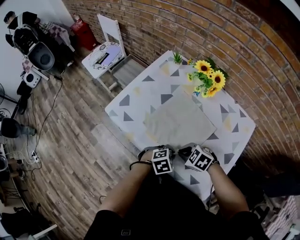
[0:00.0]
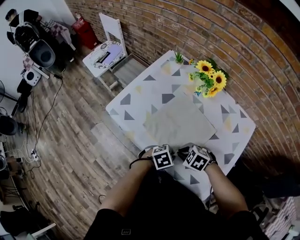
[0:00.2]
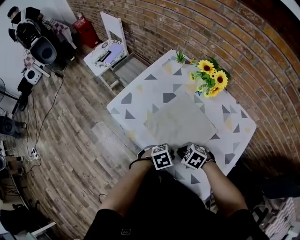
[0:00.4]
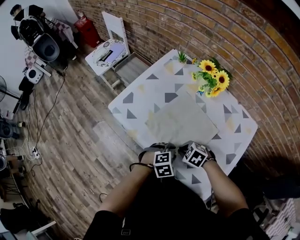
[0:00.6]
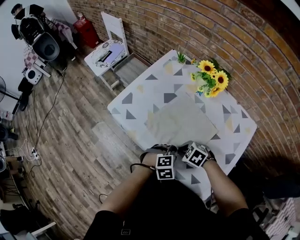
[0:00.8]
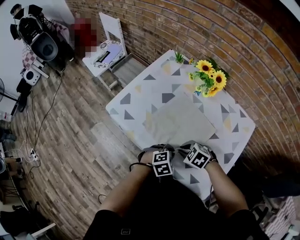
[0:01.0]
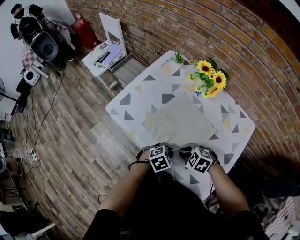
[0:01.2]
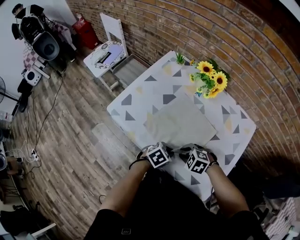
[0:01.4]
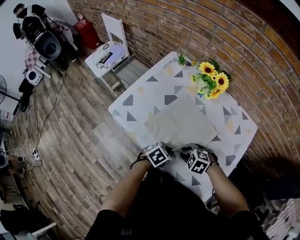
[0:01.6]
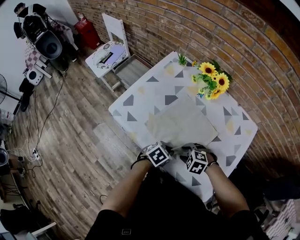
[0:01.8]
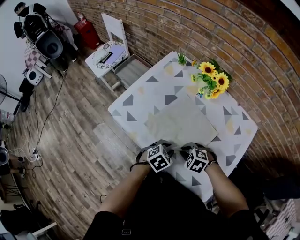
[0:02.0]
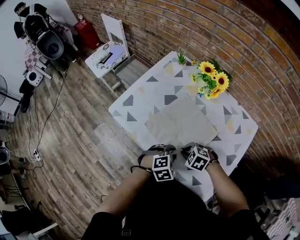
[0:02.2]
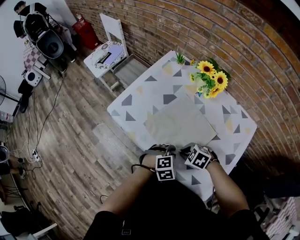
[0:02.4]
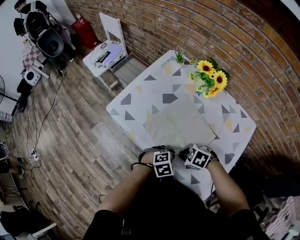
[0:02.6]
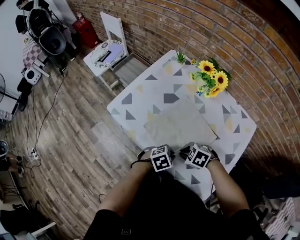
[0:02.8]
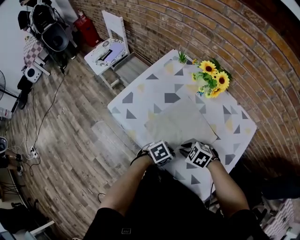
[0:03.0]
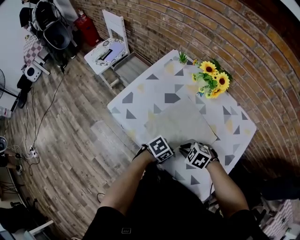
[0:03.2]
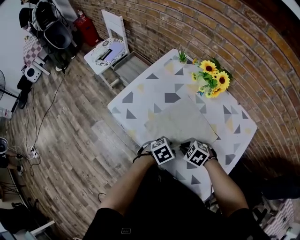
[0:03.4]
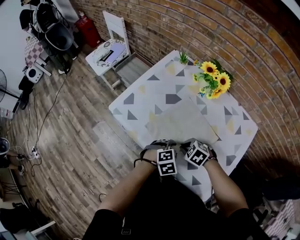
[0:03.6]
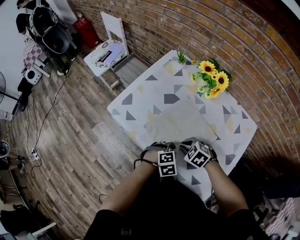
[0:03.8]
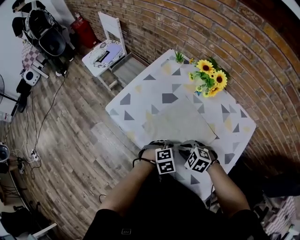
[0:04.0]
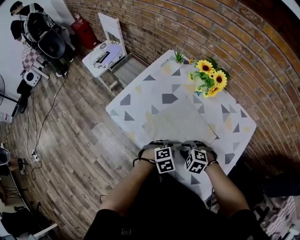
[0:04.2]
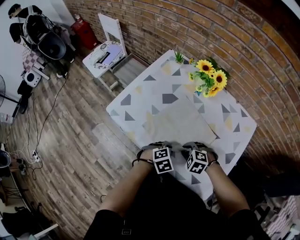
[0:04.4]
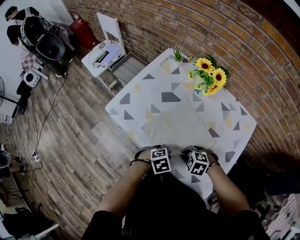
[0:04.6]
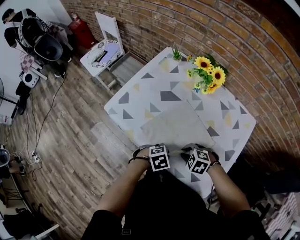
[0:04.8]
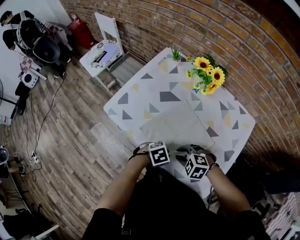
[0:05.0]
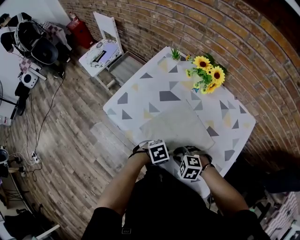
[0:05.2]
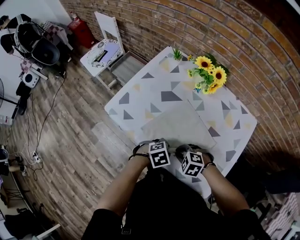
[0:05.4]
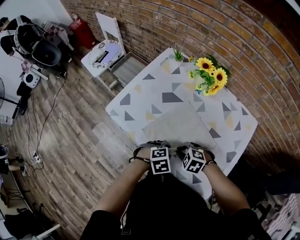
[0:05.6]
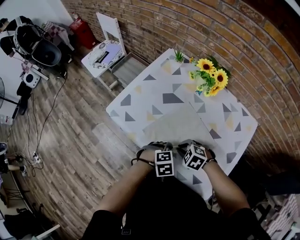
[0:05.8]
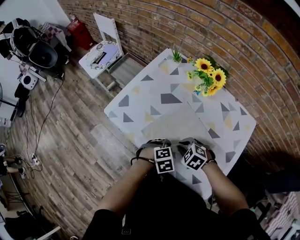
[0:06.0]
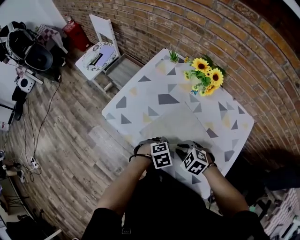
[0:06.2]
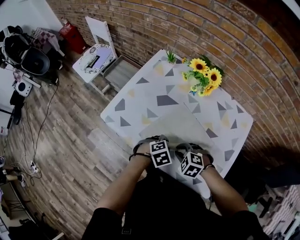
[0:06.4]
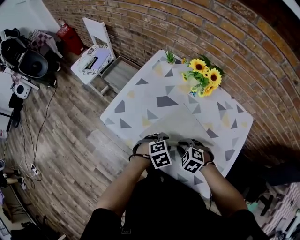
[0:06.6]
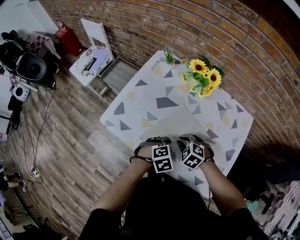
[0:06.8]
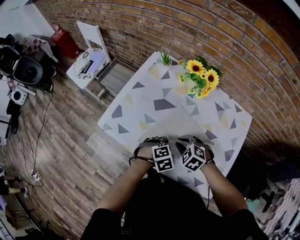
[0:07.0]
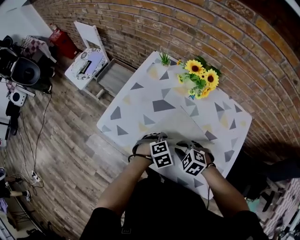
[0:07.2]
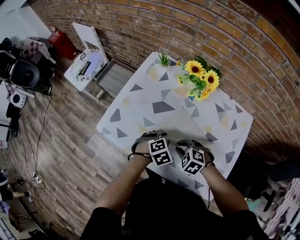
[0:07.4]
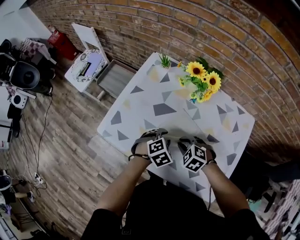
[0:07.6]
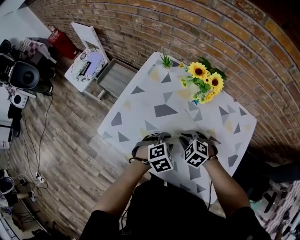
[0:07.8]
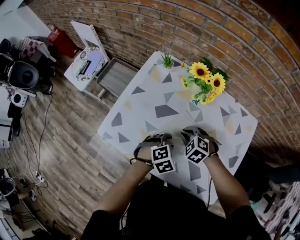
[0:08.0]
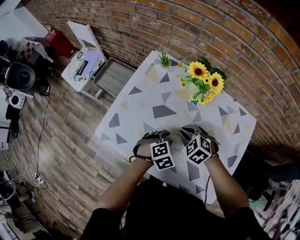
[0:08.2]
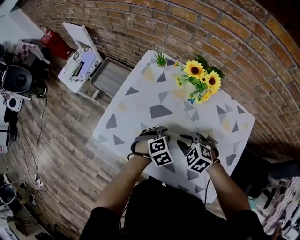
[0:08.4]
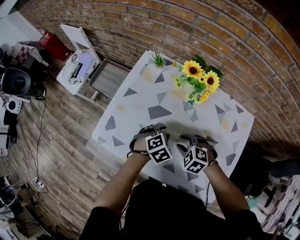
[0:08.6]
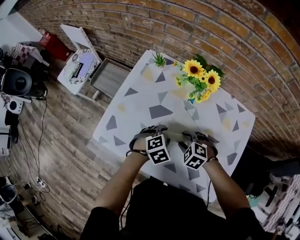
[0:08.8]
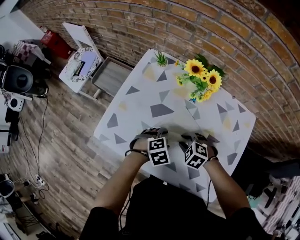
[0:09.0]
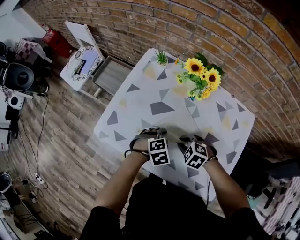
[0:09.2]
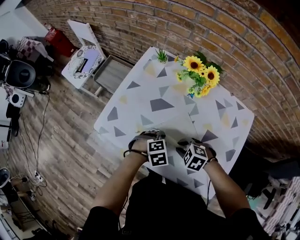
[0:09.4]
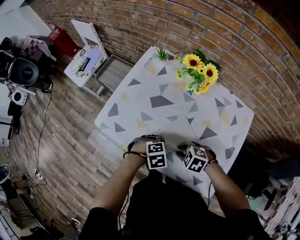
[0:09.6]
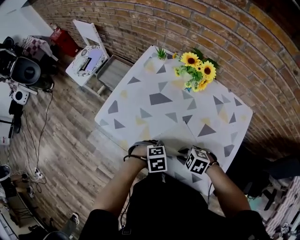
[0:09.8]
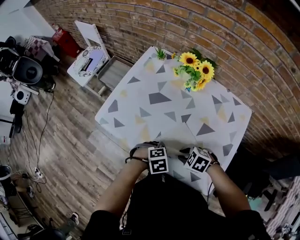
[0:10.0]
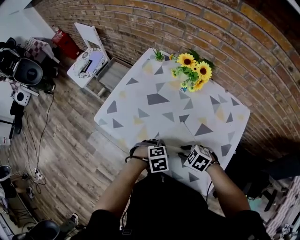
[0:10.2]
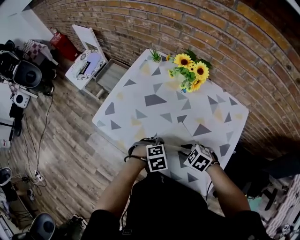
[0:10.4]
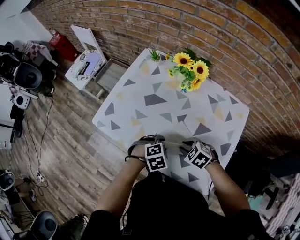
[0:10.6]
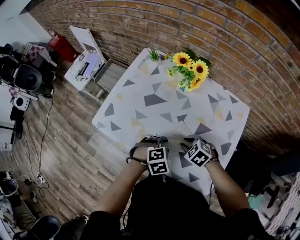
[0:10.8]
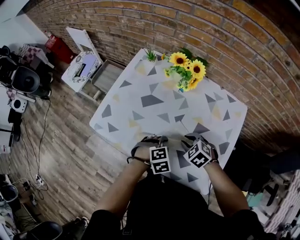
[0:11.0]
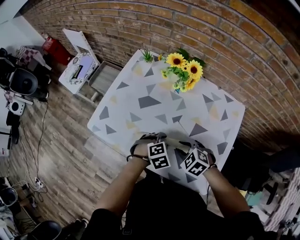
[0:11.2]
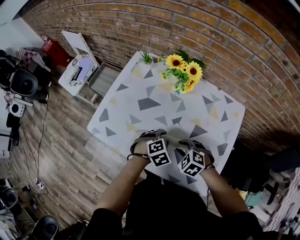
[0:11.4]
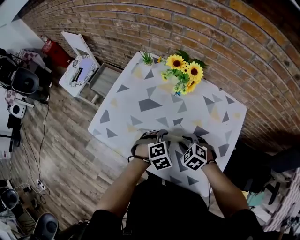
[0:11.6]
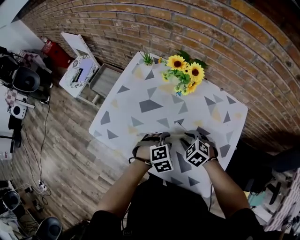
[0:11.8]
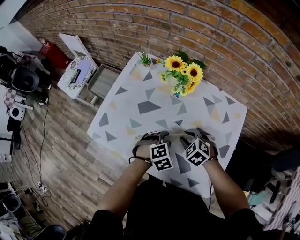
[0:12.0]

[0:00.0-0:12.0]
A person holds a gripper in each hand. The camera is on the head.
0:00.0 to 0:01.6: The left gripper swivels about 20 degrees, and opens, then closes once more.
0:03.0 to 0:04.4: The left gripper changes its angle by approximately 30 degrees, and opens, then closes once more.
0:04.4 to 0:06.0: The left gripper opens up.
0:06.0 to 0:07.6: The right gripper ends up approximately 5 cm from where it was; the left gripper moves about 15 cm.
0:09.0 to 0:10.4: The right gripper changes place by about 10 cm. The left gripper moves roughly 10 cm.
0:10.4 to 0:12.0: The left gripper moves approximately 10 cm. Meanwhile the right gripper moves about 10 cm.

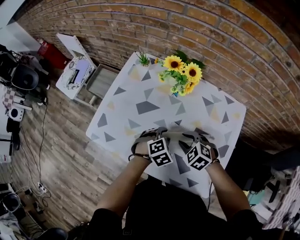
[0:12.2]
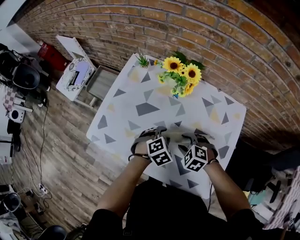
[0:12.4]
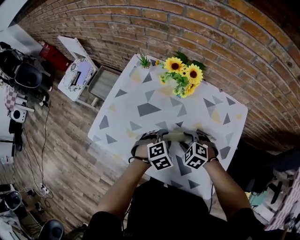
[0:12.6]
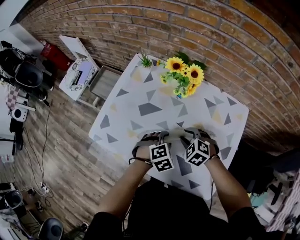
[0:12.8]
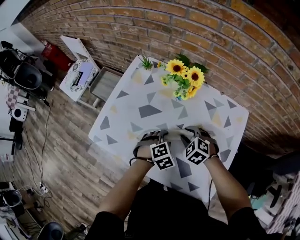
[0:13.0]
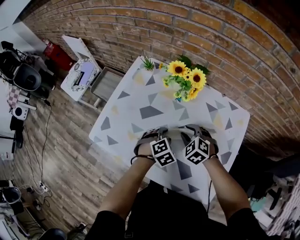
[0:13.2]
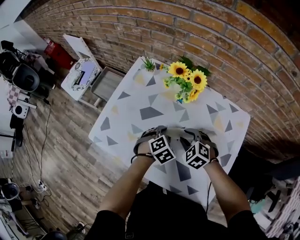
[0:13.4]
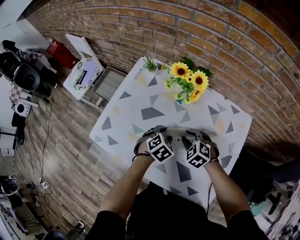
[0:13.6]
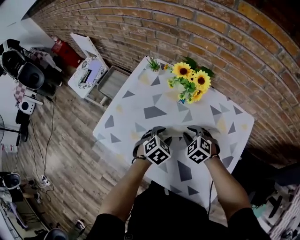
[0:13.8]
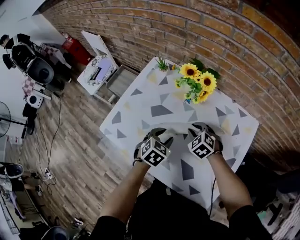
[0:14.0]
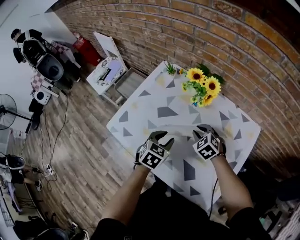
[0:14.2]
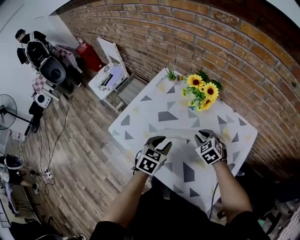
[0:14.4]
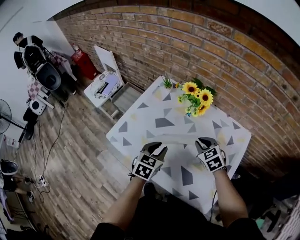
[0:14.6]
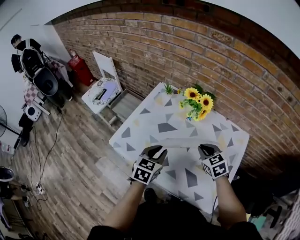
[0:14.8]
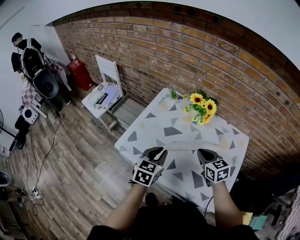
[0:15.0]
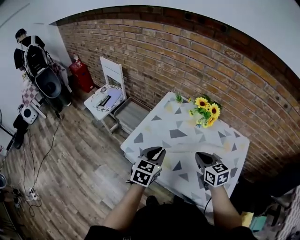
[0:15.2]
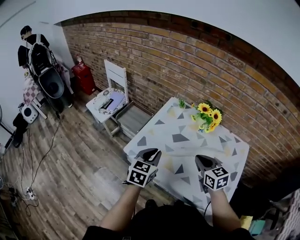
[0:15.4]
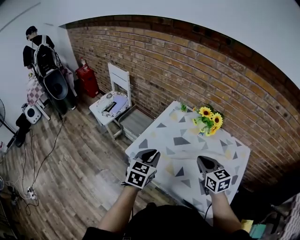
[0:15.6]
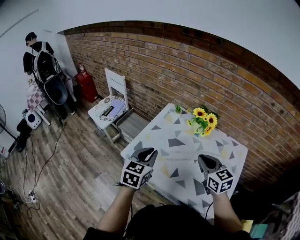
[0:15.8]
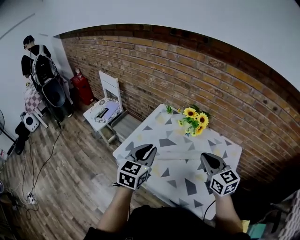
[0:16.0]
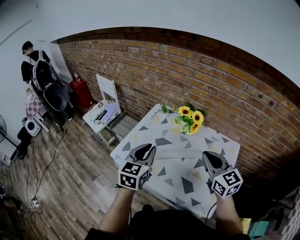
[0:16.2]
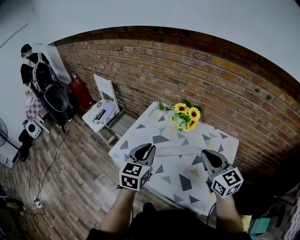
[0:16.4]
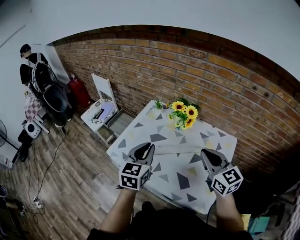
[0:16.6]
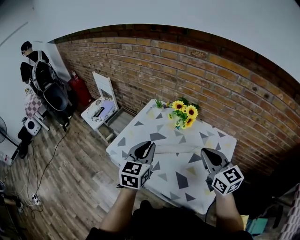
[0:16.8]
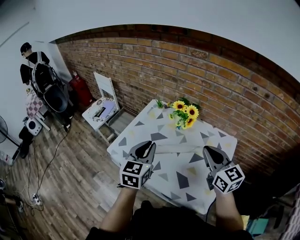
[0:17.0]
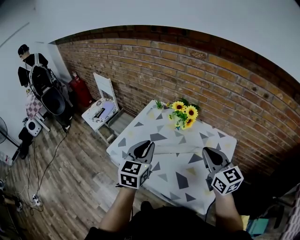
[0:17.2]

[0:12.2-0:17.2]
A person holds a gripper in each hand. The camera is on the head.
0:12.2 to 0:13.8: The right gripper shifts approximately 5 cm forward. Meanwhile the left gripper swivels roughly 20 degrees.
0:13.8 to 0:15.6: The left gripper shifts roughly 30 cm to the left and upward, tips its fingers upward by roughly 30 degrees, and closes, while the right gripper is displaced upward, to the left and backward by roughly 25 cm, tilts its fingers roughly 30 degrees upward, and closes its fingers.
0:15.6 to 0:17.2: Both grippers travel together to the right and upward, some 20 cm.

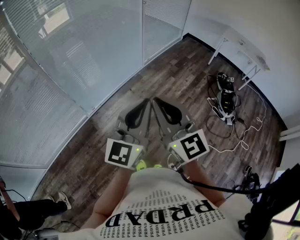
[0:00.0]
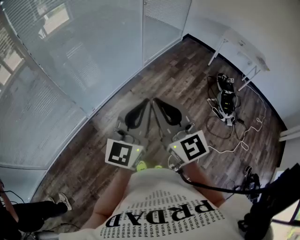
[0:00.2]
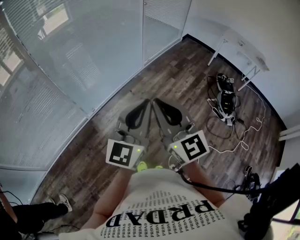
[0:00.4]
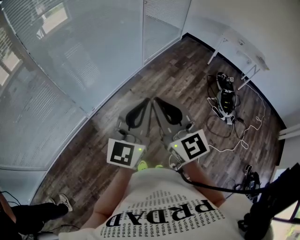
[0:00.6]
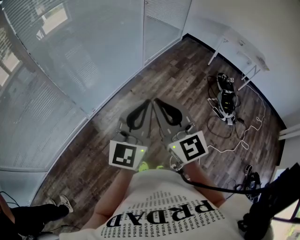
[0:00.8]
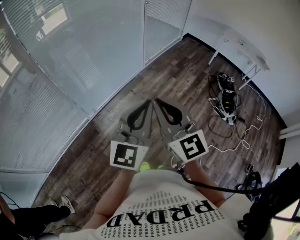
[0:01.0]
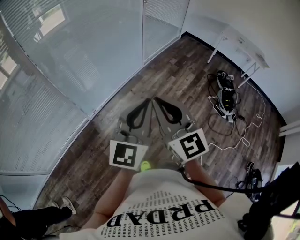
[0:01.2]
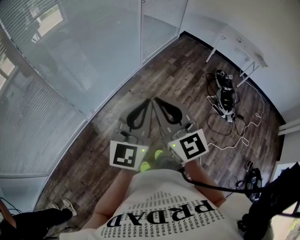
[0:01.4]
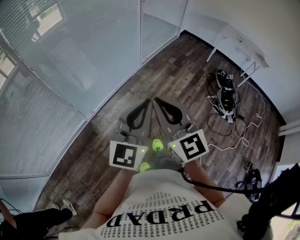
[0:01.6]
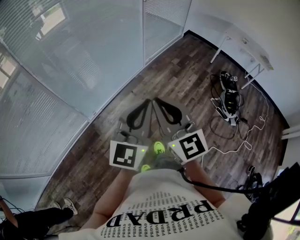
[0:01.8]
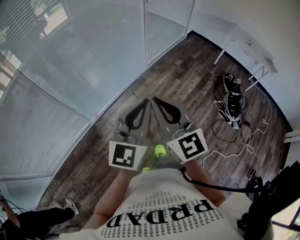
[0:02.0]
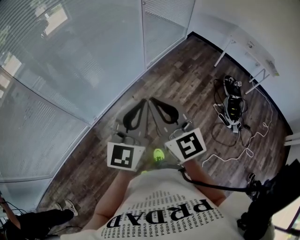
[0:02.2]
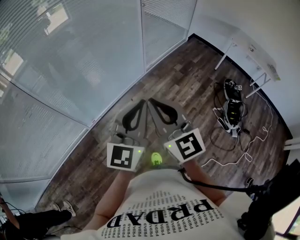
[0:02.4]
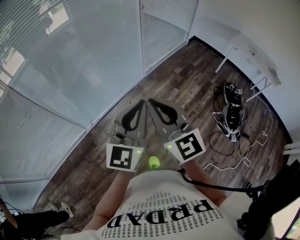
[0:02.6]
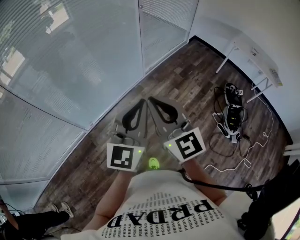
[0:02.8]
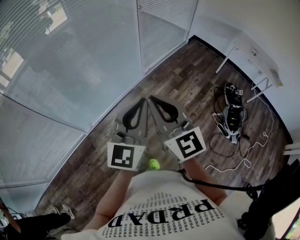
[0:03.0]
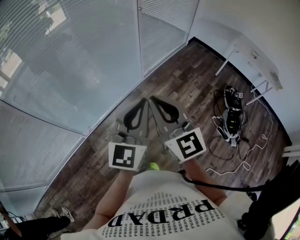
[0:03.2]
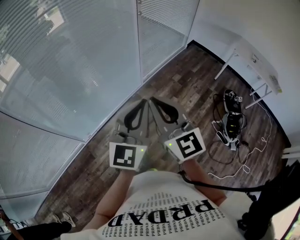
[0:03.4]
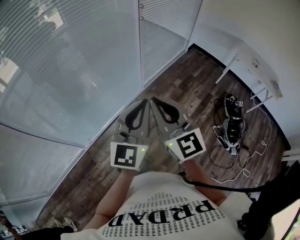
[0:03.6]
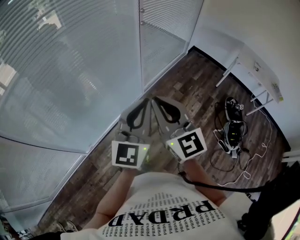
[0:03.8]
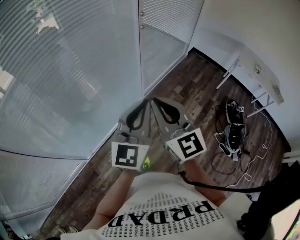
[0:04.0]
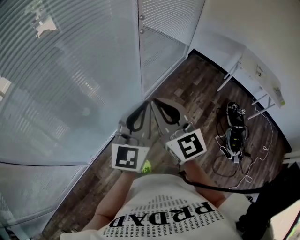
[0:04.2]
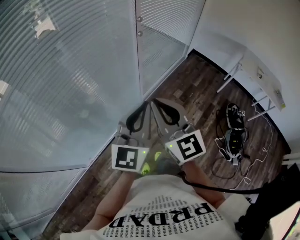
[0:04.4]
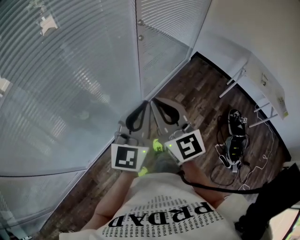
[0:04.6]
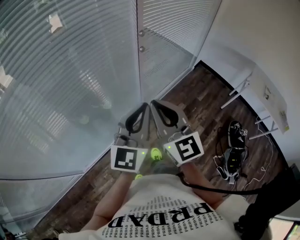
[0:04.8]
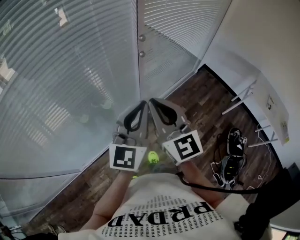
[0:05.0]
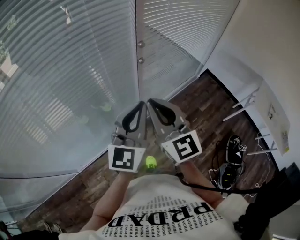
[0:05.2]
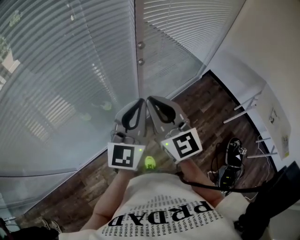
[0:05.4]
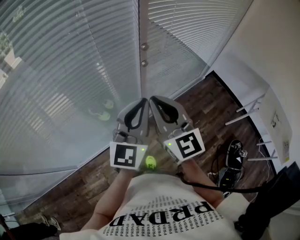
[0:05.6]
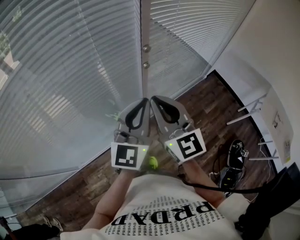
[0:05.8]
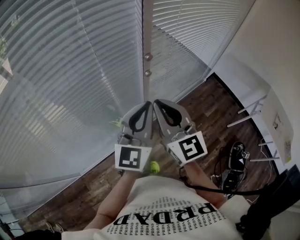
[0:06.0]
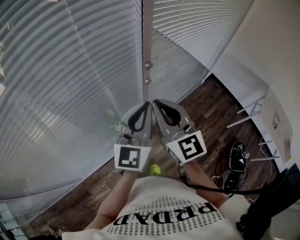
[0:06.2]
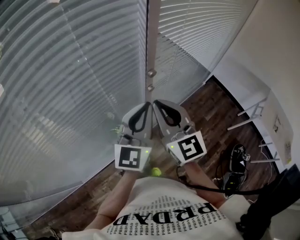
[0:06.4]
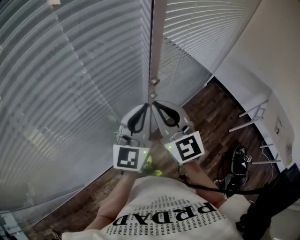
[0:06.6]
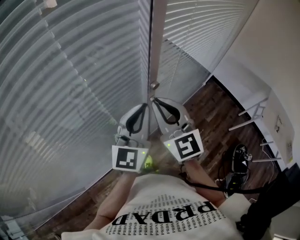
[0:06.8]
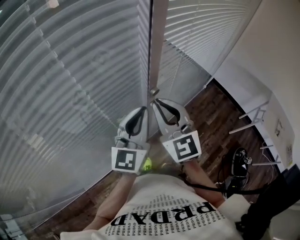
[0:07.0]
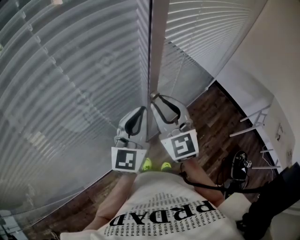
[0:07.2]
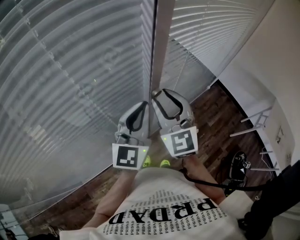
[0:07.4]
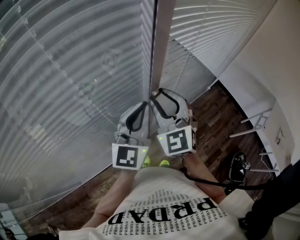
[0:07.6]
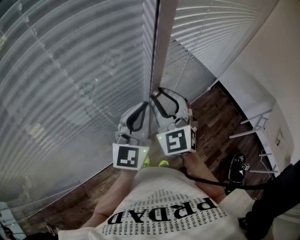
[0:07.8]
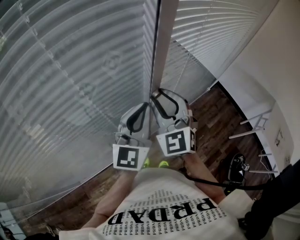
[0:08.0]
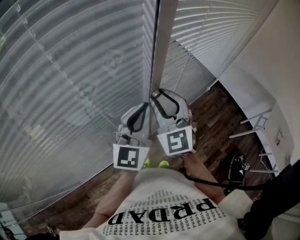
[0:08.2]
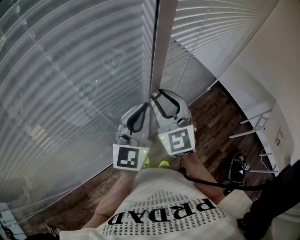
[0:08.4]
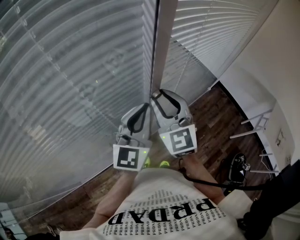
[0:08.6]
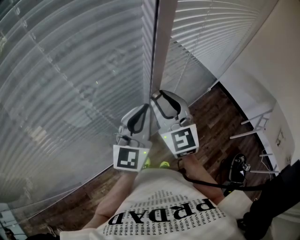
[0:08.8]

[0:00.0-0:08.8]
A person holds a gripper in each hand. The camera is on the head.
0:00.0 to 0:01.4: The right gripper shifts by about 5 cm. Meanwhile the left gripper changes place by some 5 cm.
0:01.4 to 0:03.0: Both grippers travel together forward and to the right, about 30 cm.
0:03.0 to 0:04.4: The grippers both shift forward by about 35 cm.
0:04.4 to 0:05.8: The grippers both shift forward by about 30 cm.
0:05.8 to 0:07.4: The grippers both shift forward by roughly 20 cm. The right gripper rotates about 20 degrees, and opens up.
0:07.4 to 0:08.8: The grippers make only small movements.
